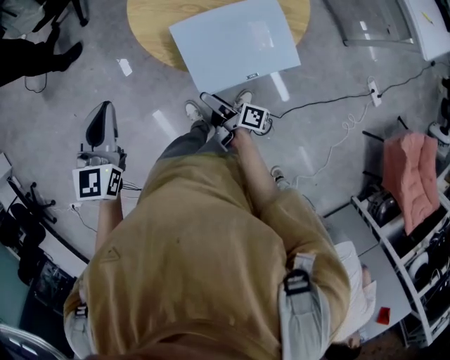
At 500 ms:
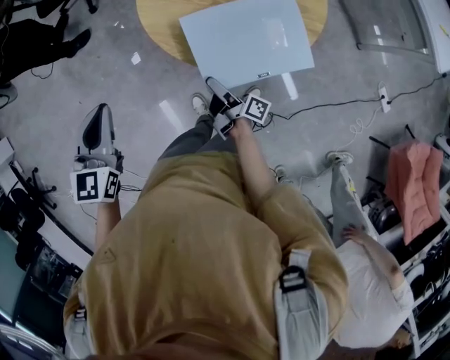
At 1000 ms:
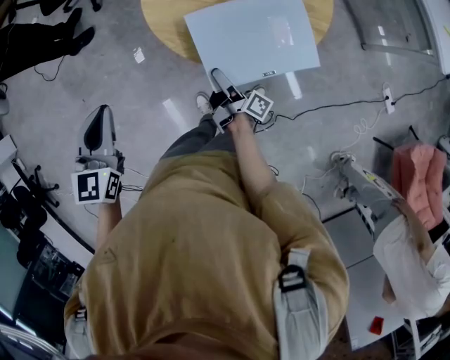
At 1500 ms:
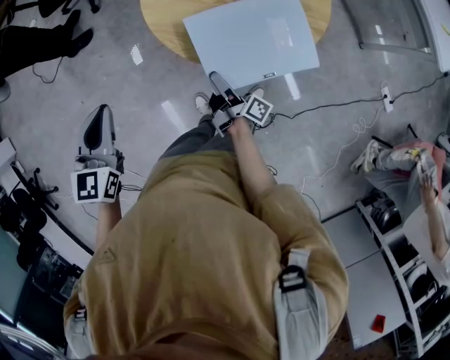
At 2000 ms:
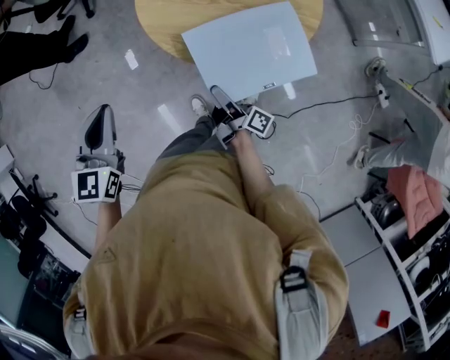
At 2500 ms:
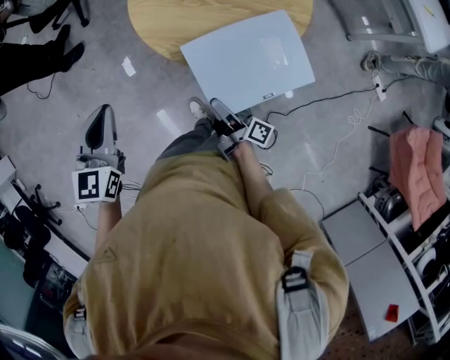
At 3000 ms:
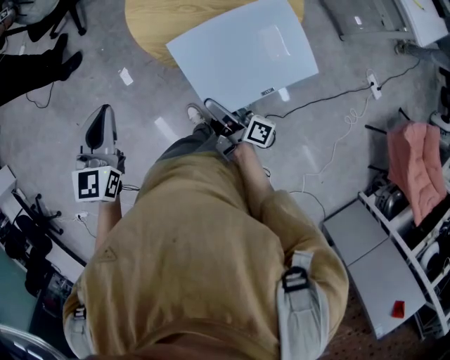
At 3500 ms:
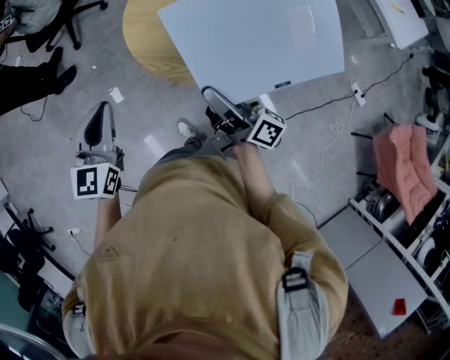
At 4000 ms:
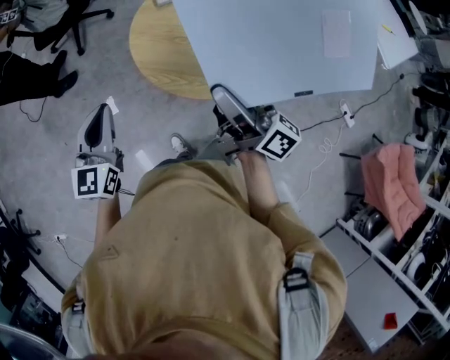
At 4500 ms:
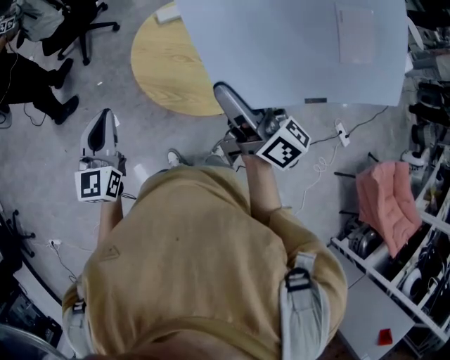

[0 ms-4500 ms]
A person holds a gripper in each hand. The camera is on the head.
0 ms to 2000 ms: The grippers move only a little.
2000 ms to 4500 ms: The left gripper goes approximately 10 cm upward and to the right, while the right gripper heads upward, covering some 40 cm, and twists roughly 50 degrees counterclockwise, seen from behind.

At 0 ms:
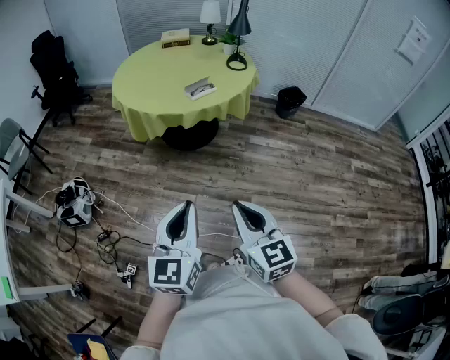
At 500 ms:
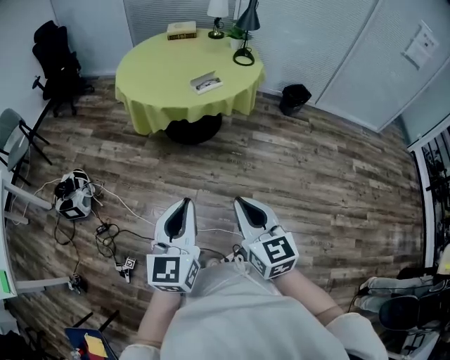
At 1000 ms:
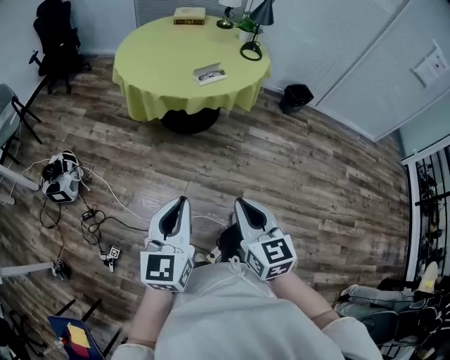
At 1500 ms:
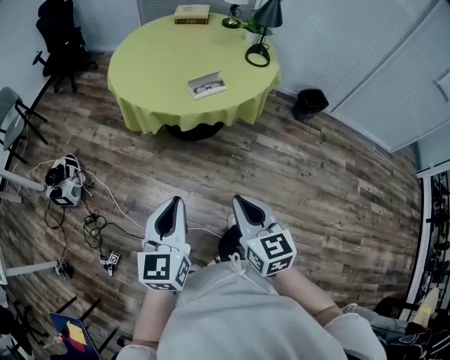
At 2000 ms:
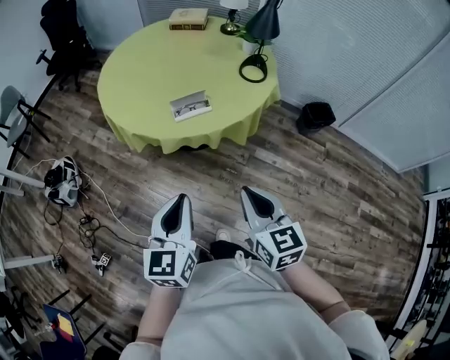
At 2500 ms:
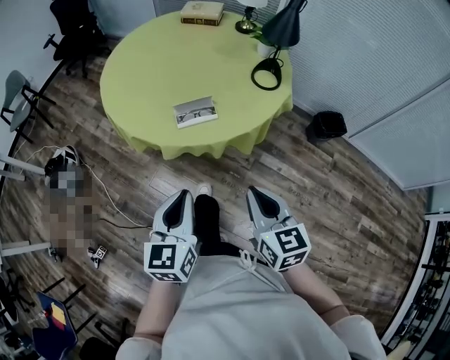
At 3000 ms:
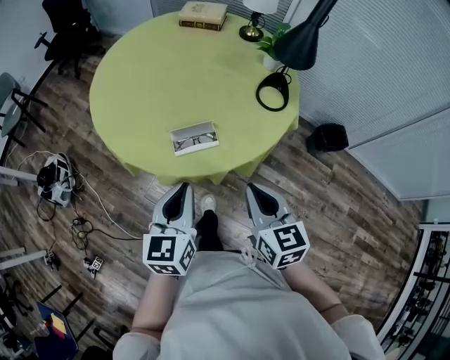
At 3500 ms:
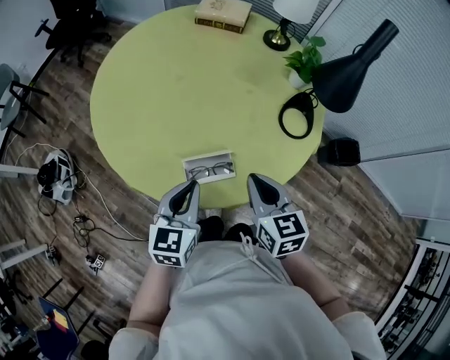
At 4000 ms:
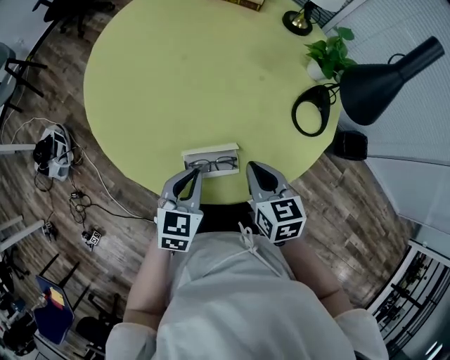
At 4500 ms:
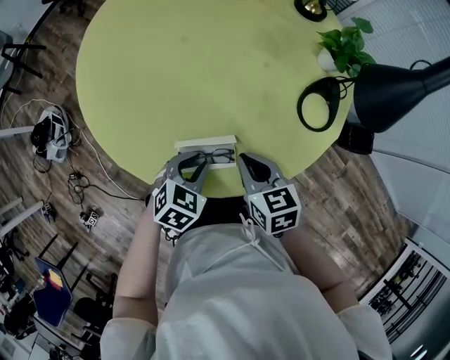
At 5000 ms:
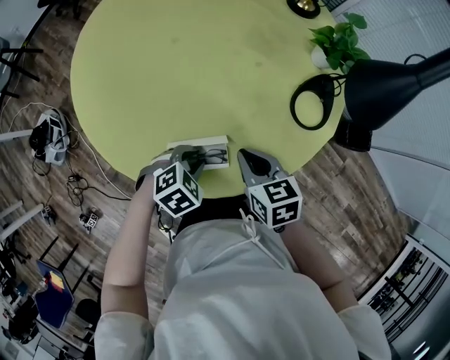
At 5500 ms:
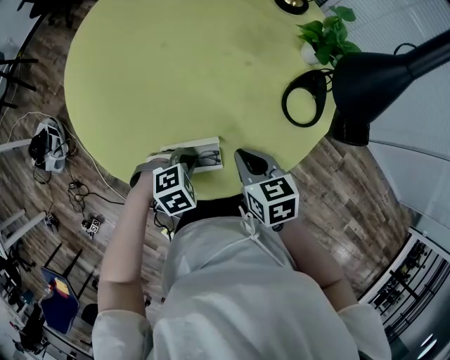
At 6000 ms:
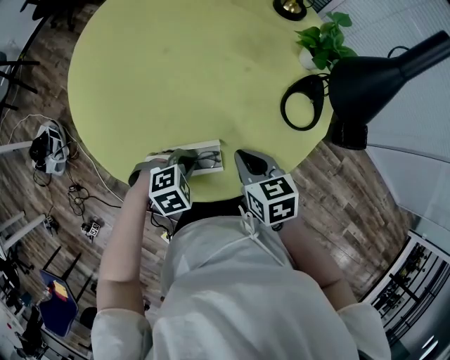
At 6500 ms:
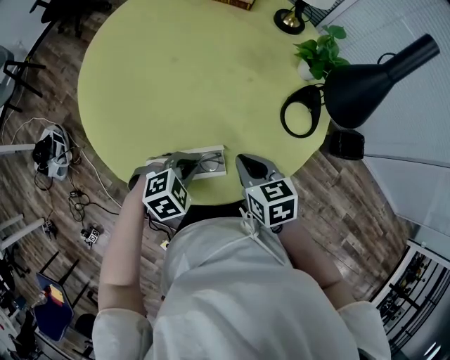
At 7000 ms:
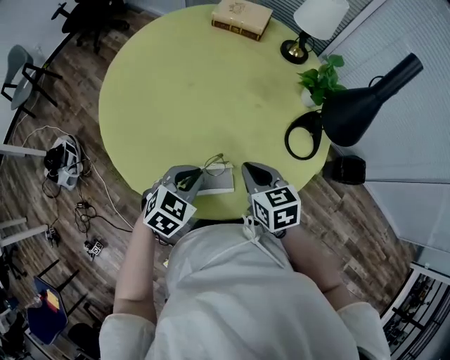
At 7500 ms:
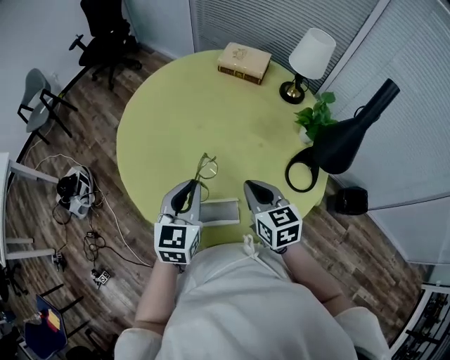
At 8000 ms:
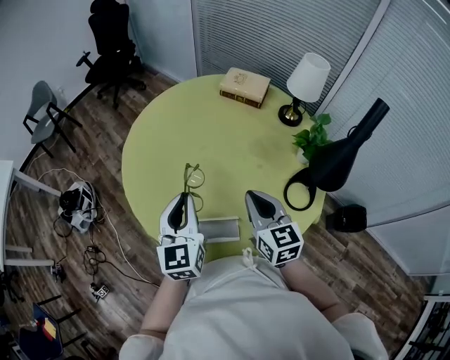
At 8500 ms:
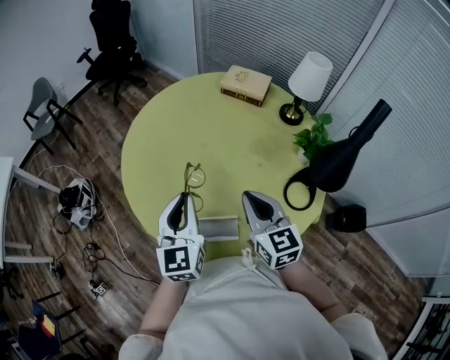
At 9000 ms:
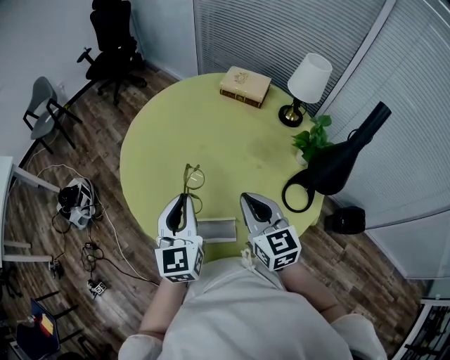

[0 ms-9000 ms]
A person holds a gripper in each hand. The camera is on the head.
0 ms to 2000 ms: Both grippers move forward and to the right, roughly 40 cm.
2000 ms to 4500 ms: The pair of grippers is taken forward, about 50 cm. The right gripper changes its angle by approximately 30 degrees; the left gripper heads downward, covering approximately 25 cm, and tilts its fingers roughly 40 degrees downward.
4500 ms to 7000 ms: The grippers both shift upward by roughly 10 cm.
7000 ms to 9000 ms: Both grippers travel together upward, some 15 cm. The right gripper swivels some 30 degrees; the left gripper angles its fingers upward, by approximately 40 degrees.

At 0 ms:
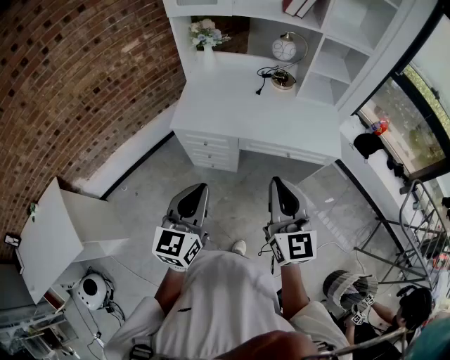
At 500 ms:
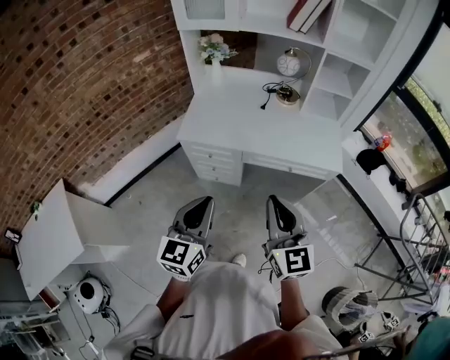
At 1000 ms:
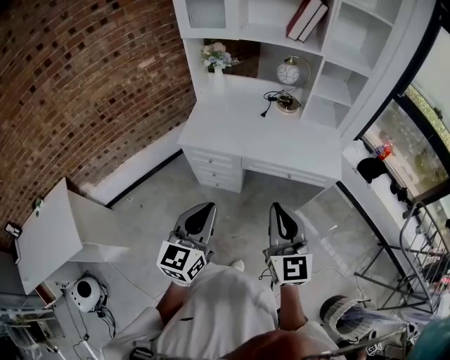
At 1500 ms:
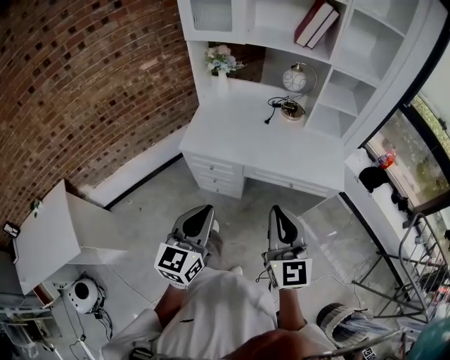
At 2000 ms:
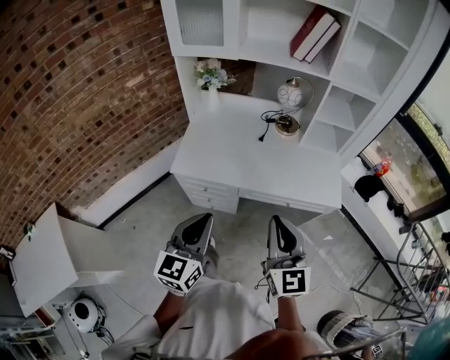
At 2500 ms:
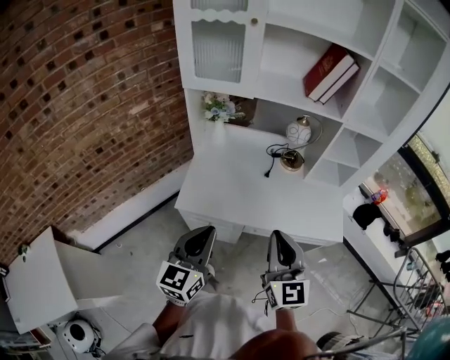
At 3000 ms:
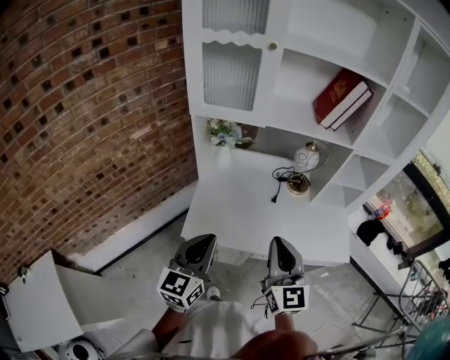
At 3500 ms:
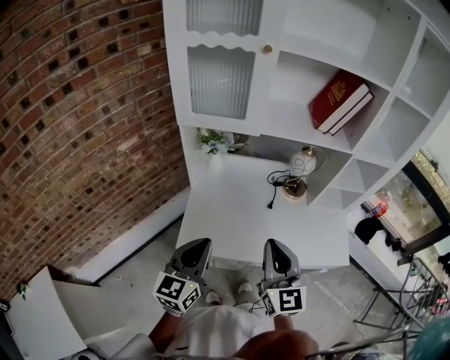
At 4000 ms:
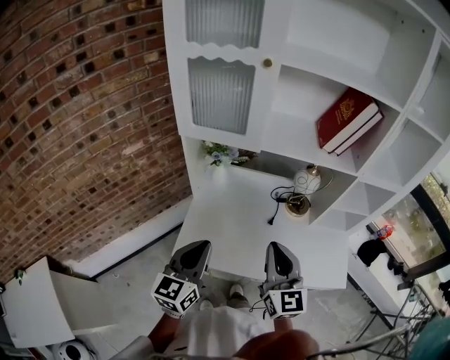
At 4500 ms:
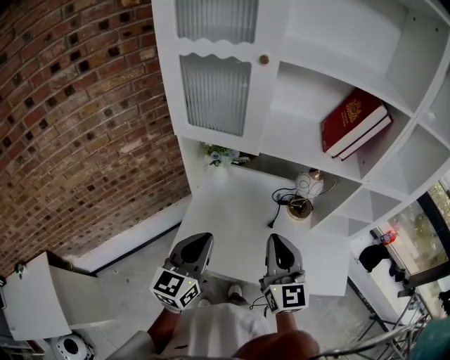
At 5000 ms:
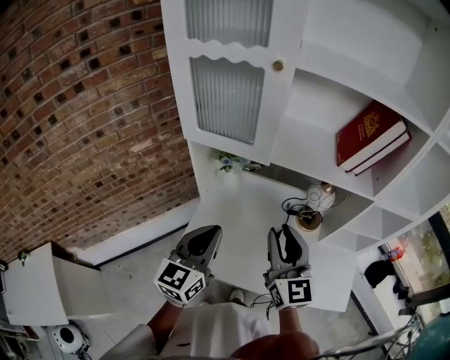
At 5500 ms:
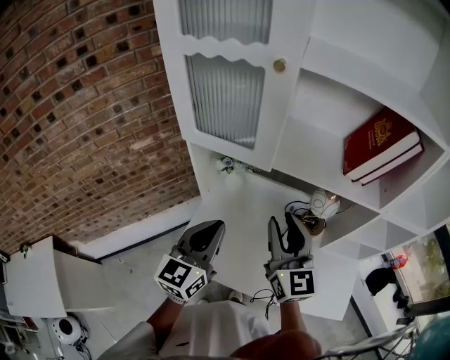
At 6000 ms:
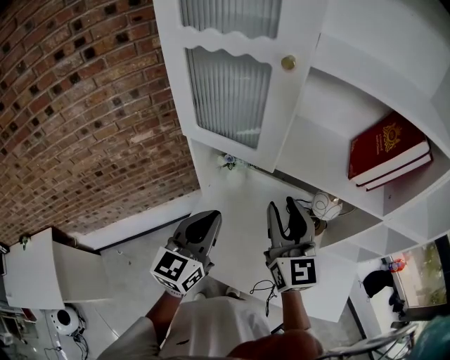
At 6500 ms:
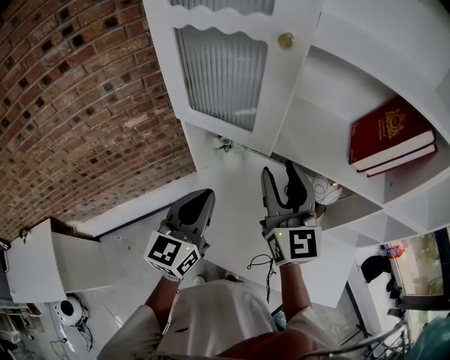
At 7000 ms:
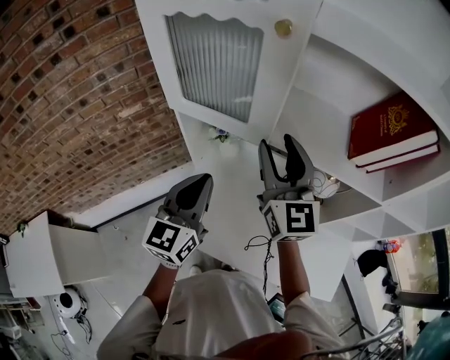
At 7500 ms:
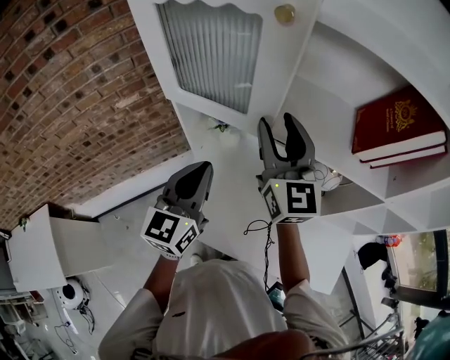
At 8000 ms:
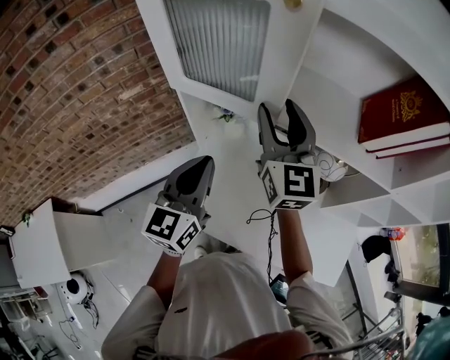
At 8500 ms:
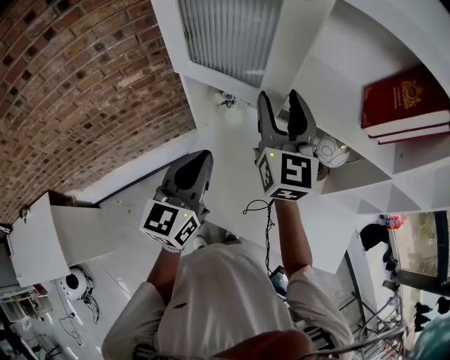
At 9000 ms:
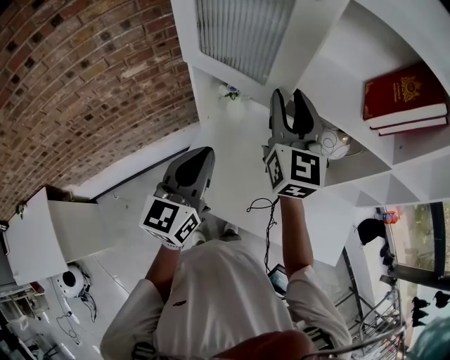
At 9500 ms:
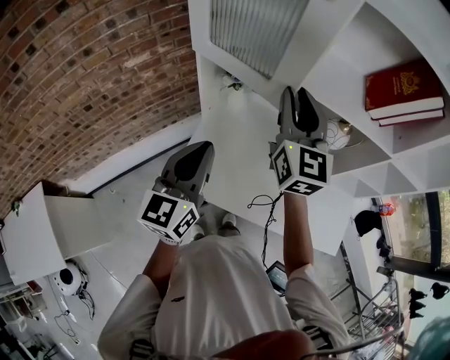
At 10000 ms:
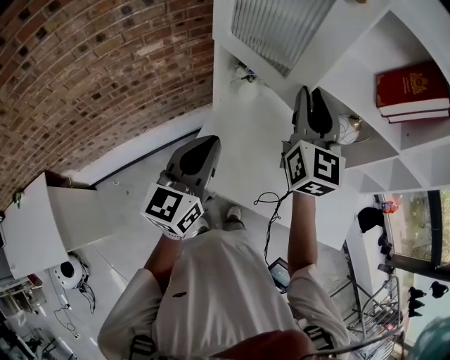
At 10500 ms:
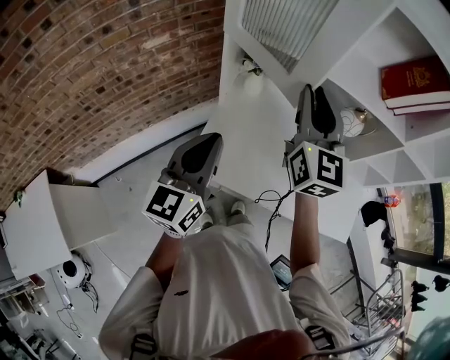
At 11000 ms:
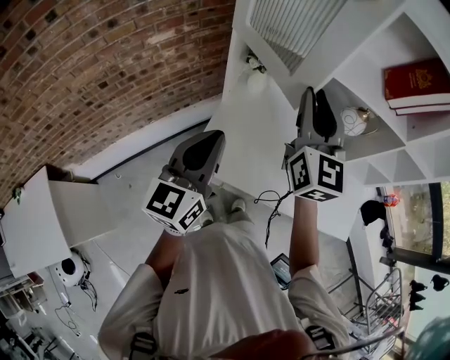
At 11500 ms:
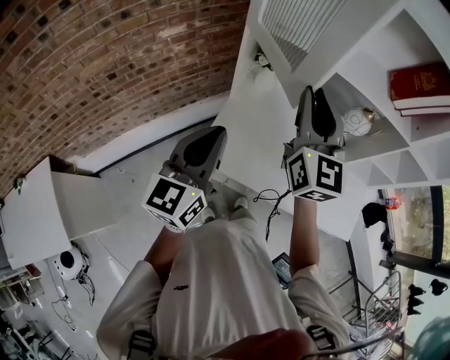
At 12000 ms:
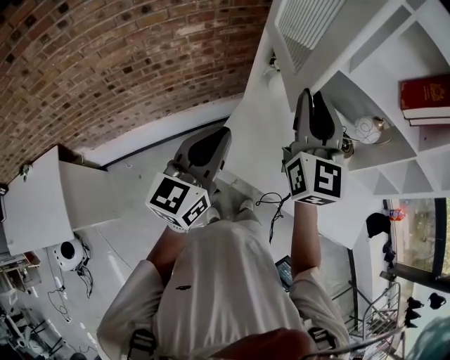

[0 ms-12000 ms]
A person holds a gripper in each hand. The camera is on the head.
0 ms to 2000 ms: The grippers both shift forward by about 10 cm.
2000 ms to 4000 ms: Both grippers move forward, approximately 30 cm.
4000 ms to 6000 ms: Both grippers move forward, about 20 cm. The right gripper opens up.
6000 ms to 8000 ms: The right gripper shifts some 10 cm forward.
8000 ms to 10000 ms: The right gripper shifts some 10 cm backward, and closes up, while the left gripper travels backward and to the left by roughly 15 cm.
10000 ms to 12000 ms: The right gripper travels to the left and backward by some 15 cm; the left gripper moves backward and to the left, about 10 cm.

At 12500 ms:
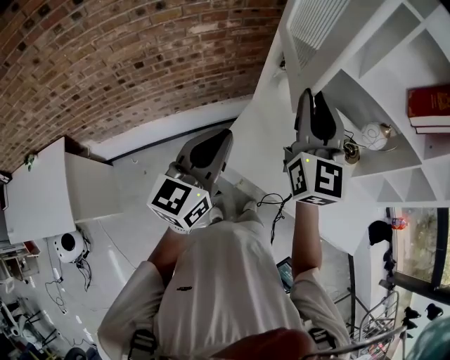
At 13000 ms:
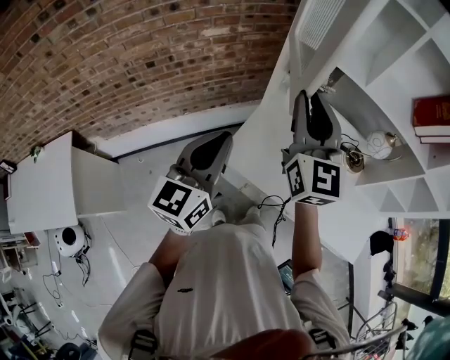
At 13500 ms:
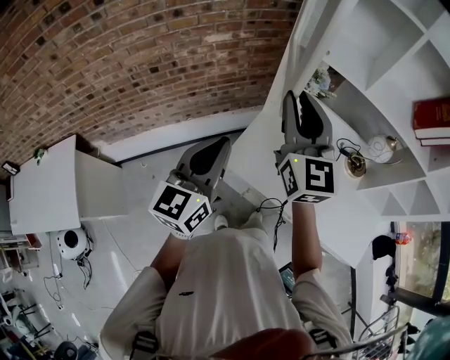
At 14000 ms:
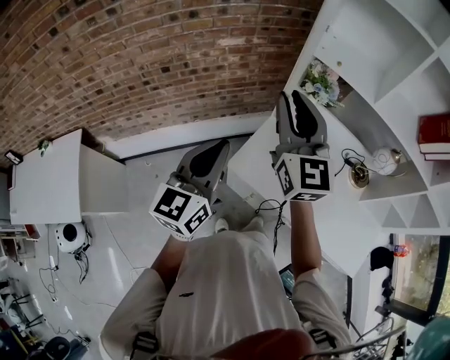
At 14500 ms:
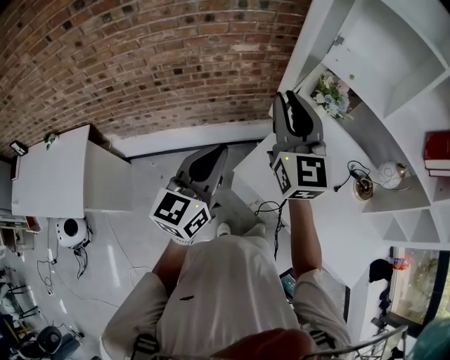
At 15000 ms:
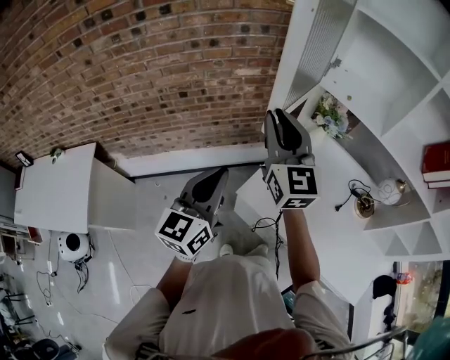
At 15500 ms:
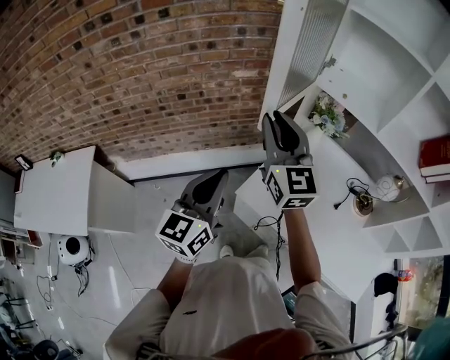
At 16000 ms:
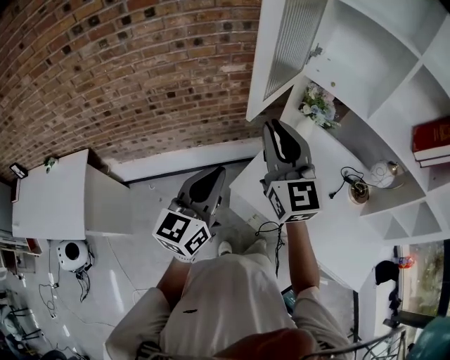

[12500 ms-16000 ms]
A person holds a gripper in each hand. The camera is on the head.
12500 ms to 14500 ms: The right gripper shifts roughly 15 cm to the left, while the left gripper goes some 10 cm to the left.
14500 ms to 16000 ms: There are only small adjustments of the grippers.
